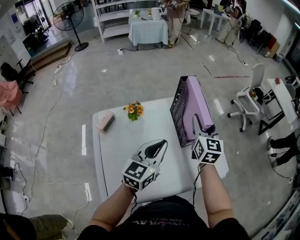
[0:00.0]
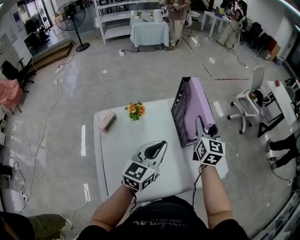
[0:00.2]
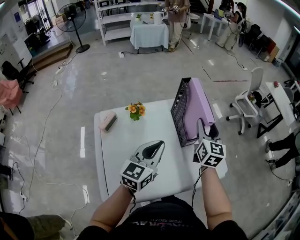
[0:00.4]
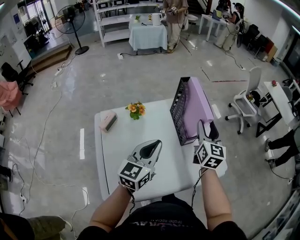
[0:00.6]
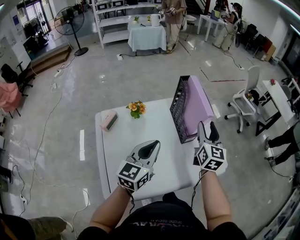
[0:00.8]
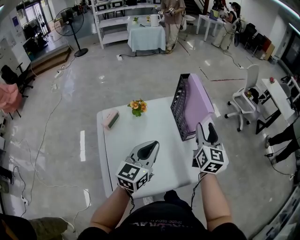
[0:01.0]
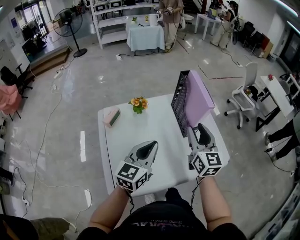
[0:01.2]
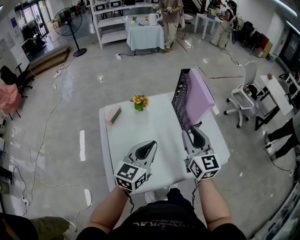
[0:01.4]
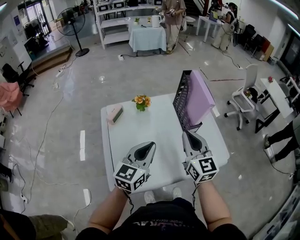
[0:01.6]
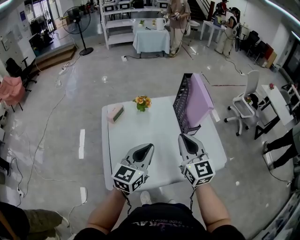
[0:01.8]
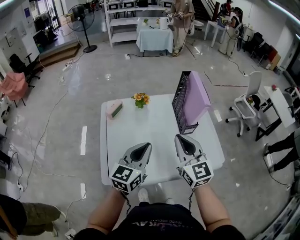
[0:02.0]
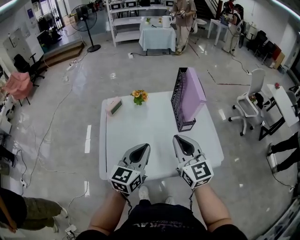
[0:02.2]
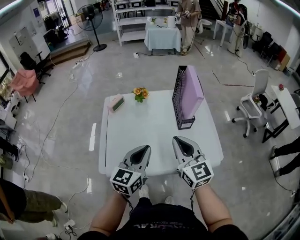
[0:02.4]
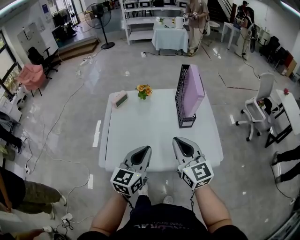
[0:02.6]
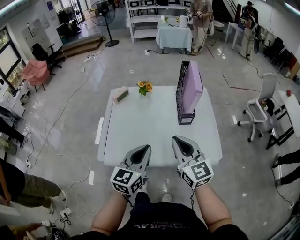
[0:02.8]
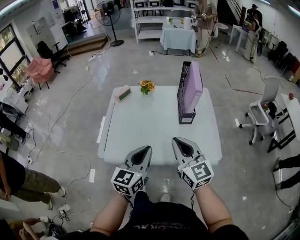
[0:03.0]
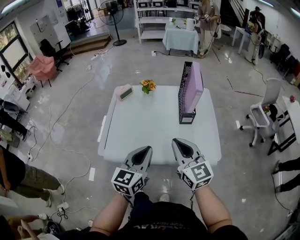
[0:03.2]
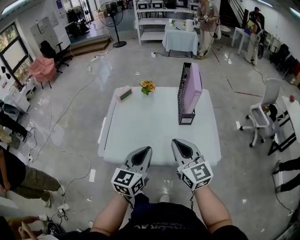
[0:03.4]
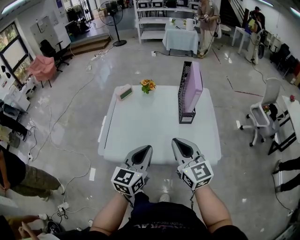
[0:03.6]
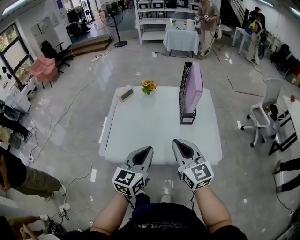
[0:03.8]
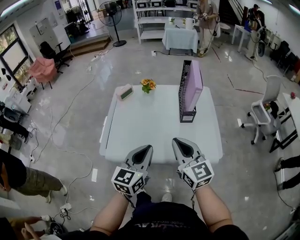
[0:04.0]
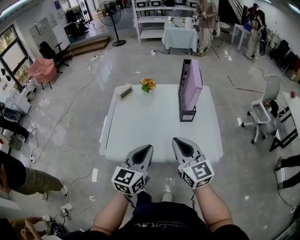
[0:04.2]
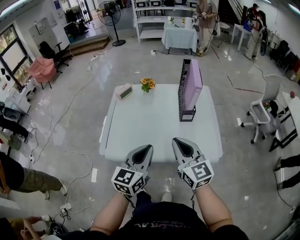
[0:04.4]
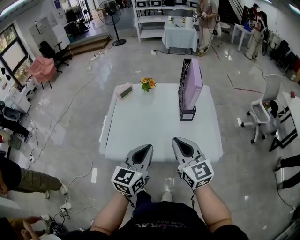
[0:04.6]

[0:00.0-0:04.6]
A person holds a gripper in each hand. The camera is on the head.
0:00.0 to 0:01.6: The right gripper shifts roughly 20 cm backward, and closes up, while the left gripper is displaced backward and to the left by approximately 15 cm.
0:01.6 to 0:03.0: Both grippers travel together backward and to the right, roughly 15 cm. The right gripper swivels some 30 degrees. Meanwhile the left gripper turns by approximately 20 degrees.
0:03.0 to 0:04.6: The grippers make only small movements.

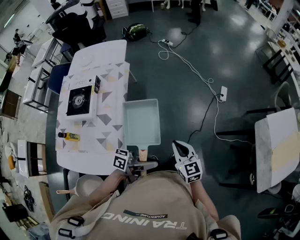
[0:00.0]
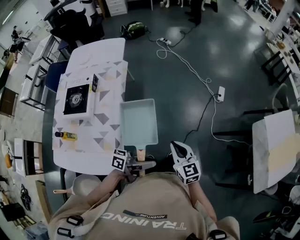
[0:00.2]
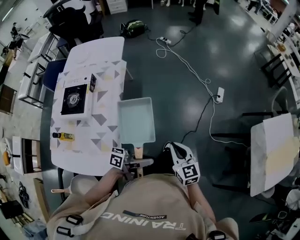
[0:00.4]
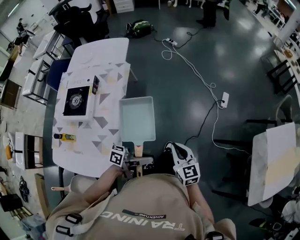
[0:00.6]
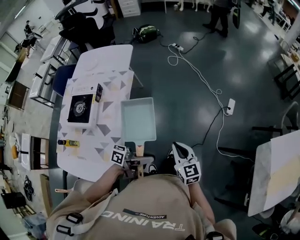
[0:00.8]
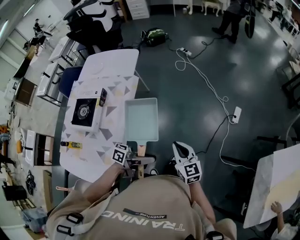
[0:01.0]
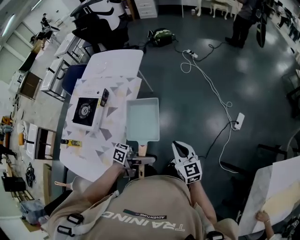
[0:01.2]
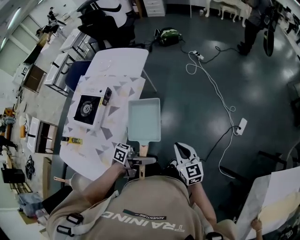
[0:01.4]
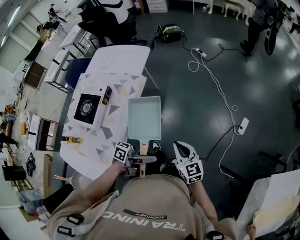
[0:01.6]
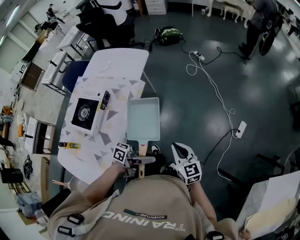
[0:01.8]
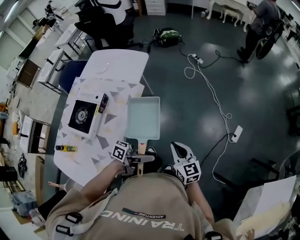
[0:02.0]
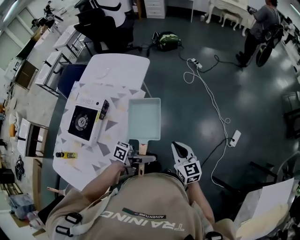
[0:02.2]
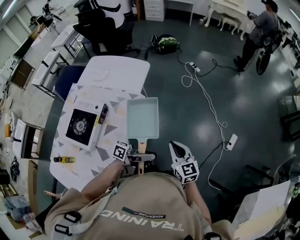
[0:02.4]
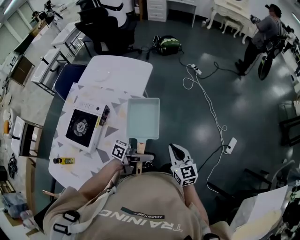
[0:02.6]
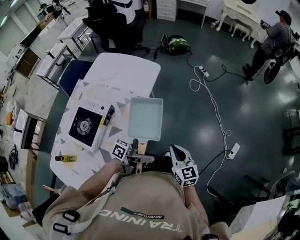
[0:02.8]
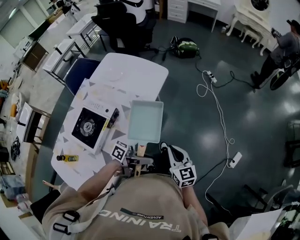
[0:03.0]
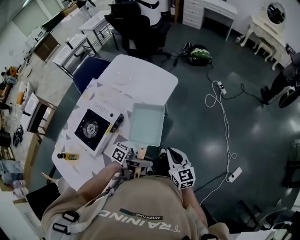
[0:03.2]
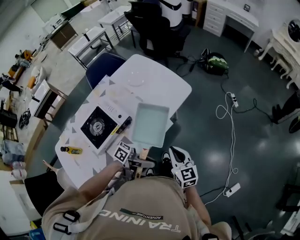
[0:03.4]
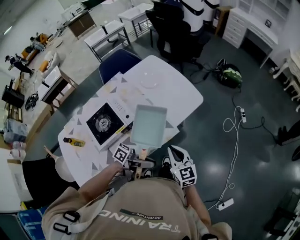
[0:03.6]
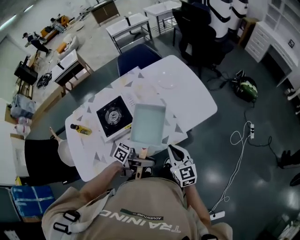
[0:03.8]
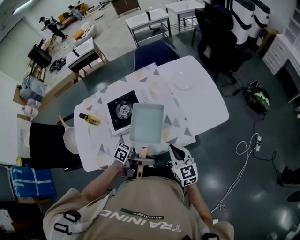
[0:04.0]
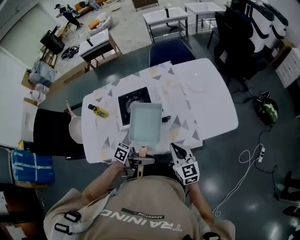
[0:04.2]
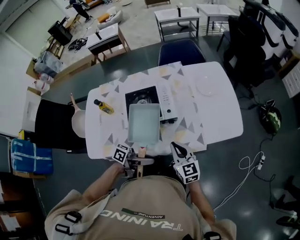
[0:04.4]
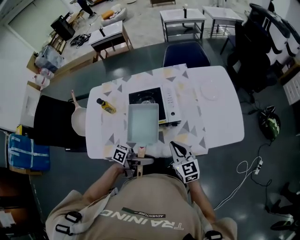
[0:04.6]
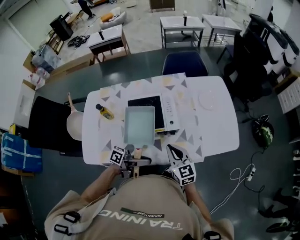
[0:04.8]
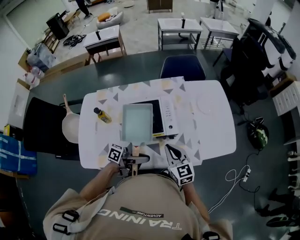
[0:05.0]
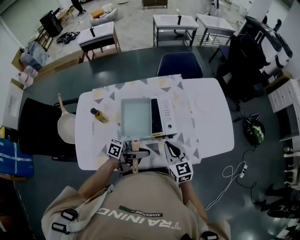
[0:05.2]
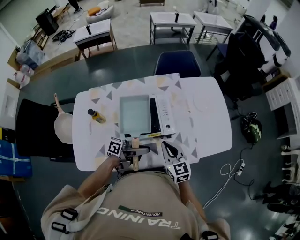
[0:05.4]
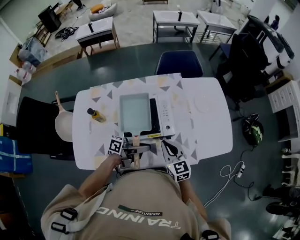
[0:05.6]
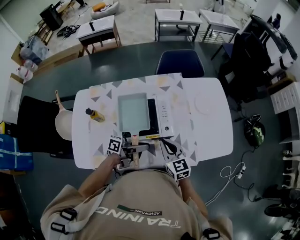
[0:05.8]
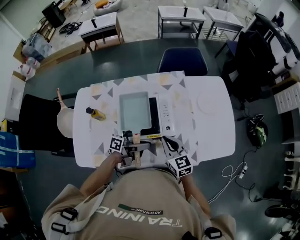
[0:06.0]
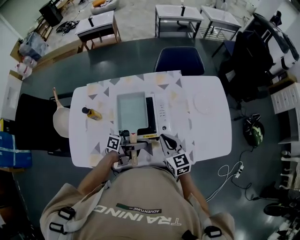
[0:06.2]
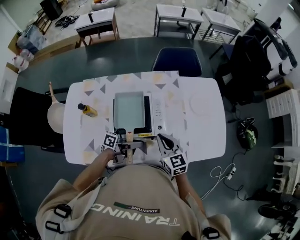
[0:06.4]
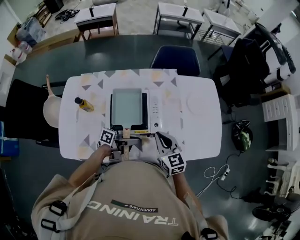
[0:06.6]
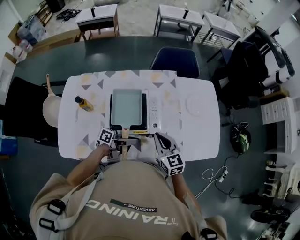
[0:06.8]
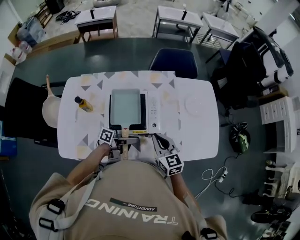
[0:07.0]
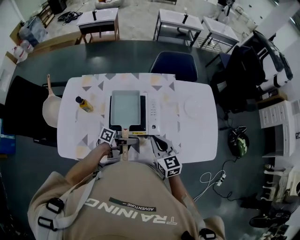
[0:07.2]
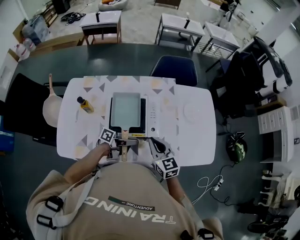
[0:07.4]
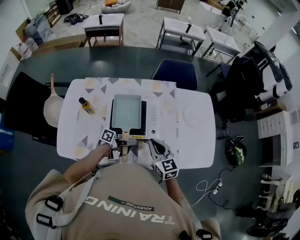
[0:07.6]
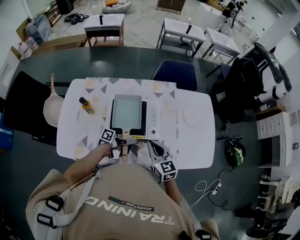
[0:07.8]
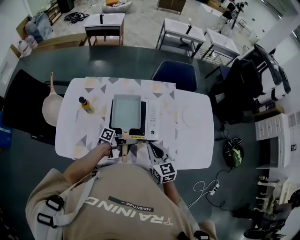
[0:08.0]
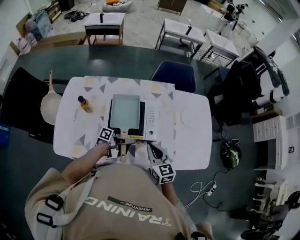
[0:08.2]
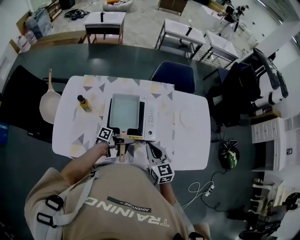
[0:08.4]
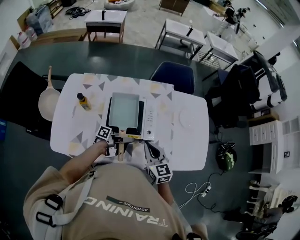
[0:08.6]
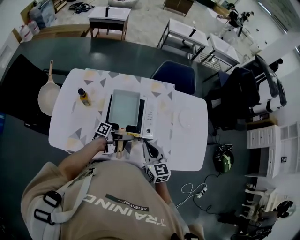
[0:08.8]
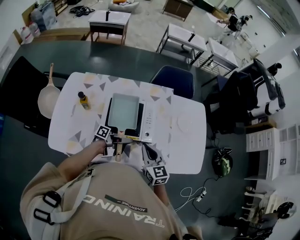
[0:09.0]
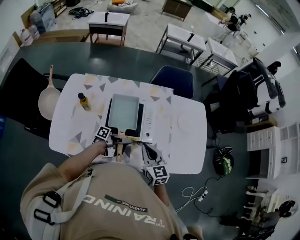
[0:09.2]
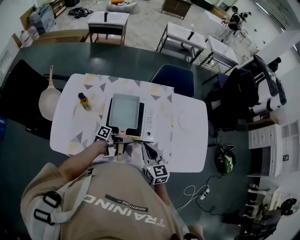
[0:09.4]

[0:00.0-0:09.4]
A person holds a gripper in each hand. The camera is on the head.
0:00.0 to 0:01.6: The right gripper ends up some 25 cm from where it was.
0:01.6 to 0:03.2: The right gripper shifts by roughly 30 cm.
0:03.2 to 0:04.8: The right gripper shifts by about 25 cm, and swivels some 60 degrees.
0:04.8 to 0:06.2: The right gripper ends up roughly 10 cm from where it was.

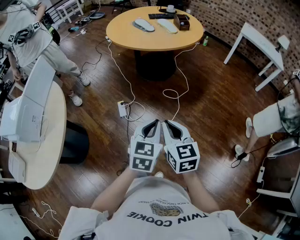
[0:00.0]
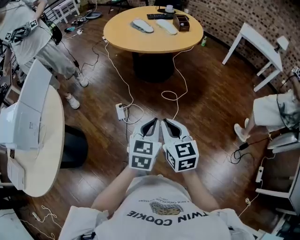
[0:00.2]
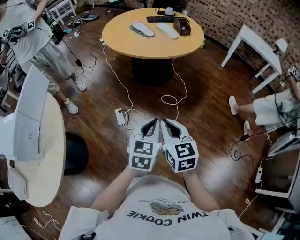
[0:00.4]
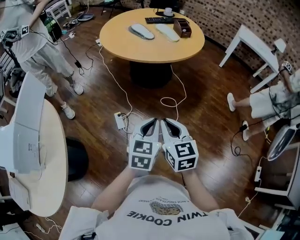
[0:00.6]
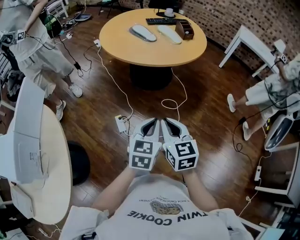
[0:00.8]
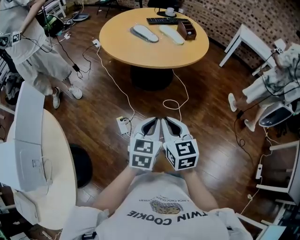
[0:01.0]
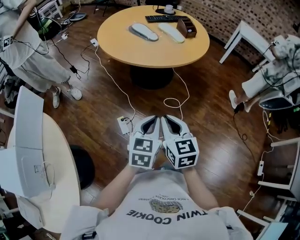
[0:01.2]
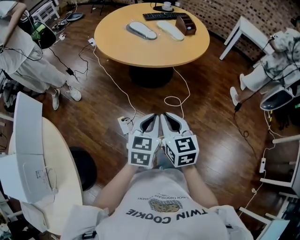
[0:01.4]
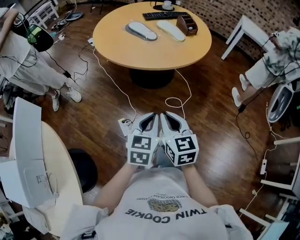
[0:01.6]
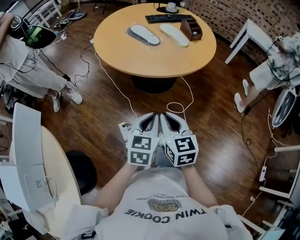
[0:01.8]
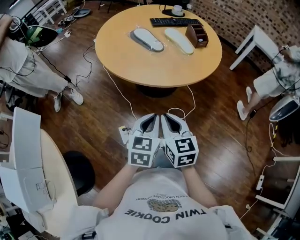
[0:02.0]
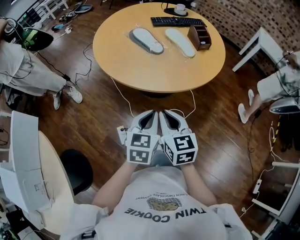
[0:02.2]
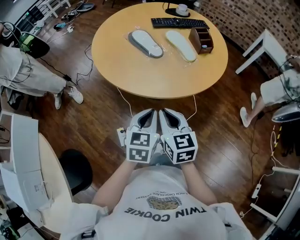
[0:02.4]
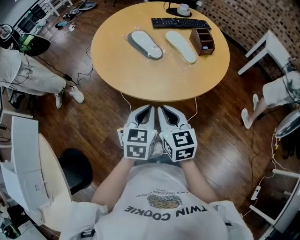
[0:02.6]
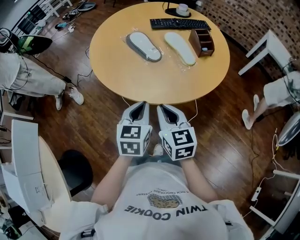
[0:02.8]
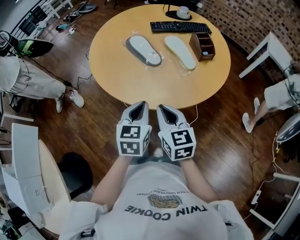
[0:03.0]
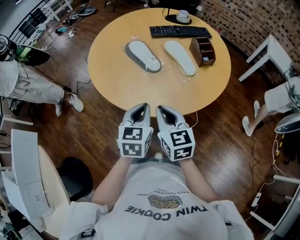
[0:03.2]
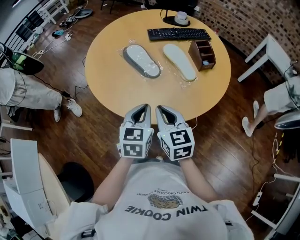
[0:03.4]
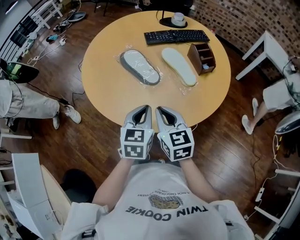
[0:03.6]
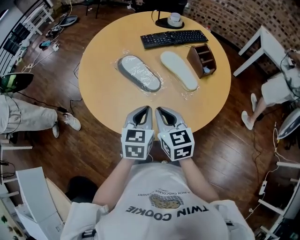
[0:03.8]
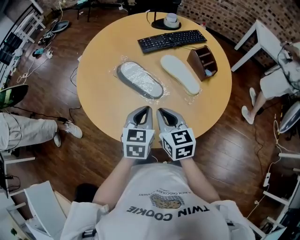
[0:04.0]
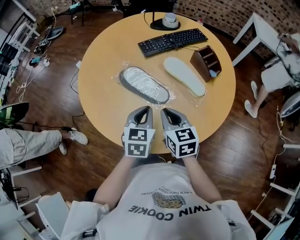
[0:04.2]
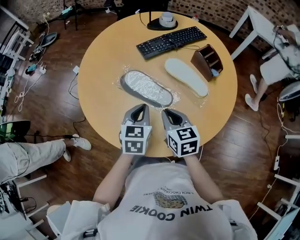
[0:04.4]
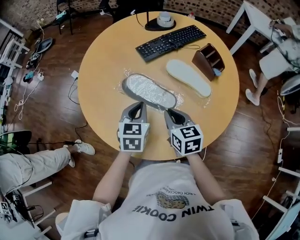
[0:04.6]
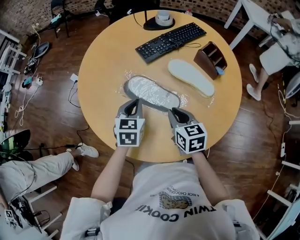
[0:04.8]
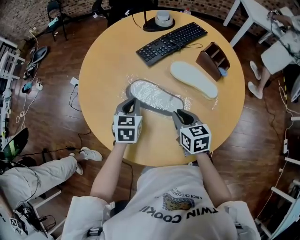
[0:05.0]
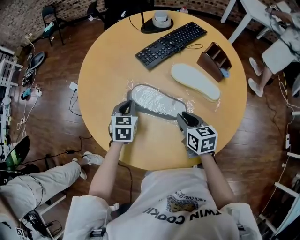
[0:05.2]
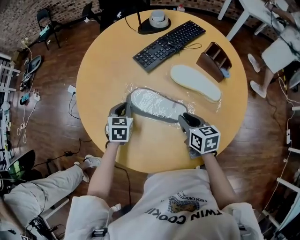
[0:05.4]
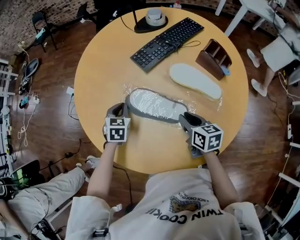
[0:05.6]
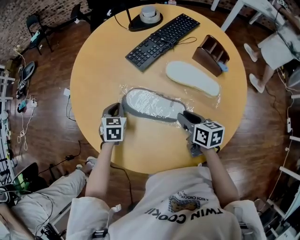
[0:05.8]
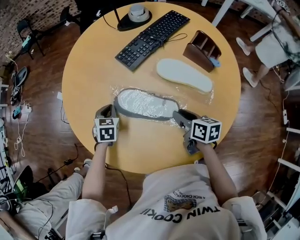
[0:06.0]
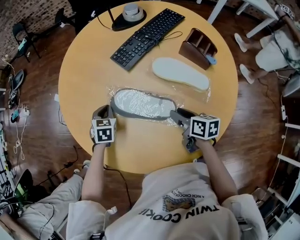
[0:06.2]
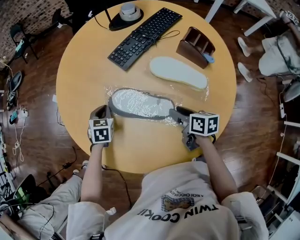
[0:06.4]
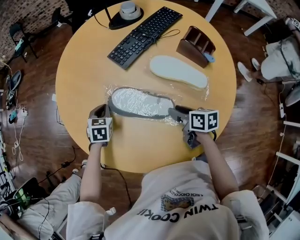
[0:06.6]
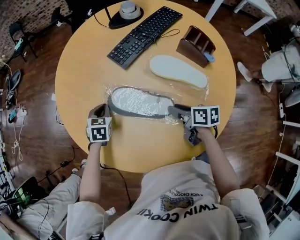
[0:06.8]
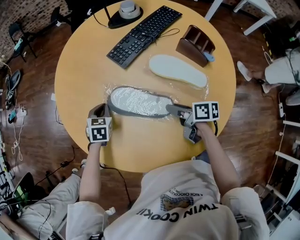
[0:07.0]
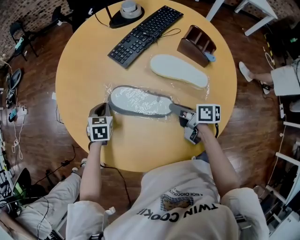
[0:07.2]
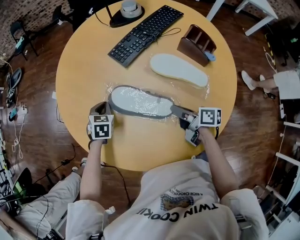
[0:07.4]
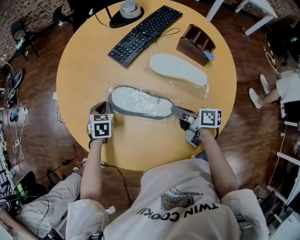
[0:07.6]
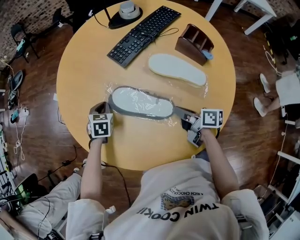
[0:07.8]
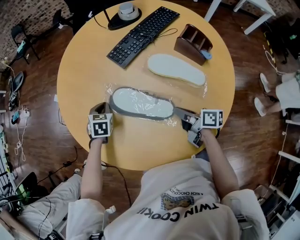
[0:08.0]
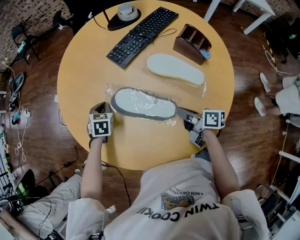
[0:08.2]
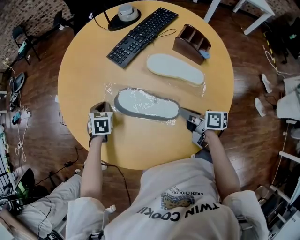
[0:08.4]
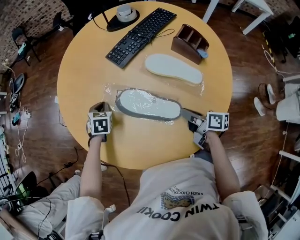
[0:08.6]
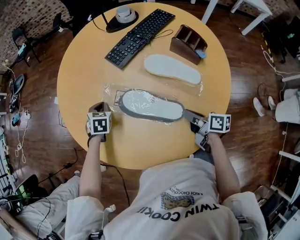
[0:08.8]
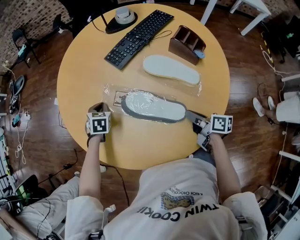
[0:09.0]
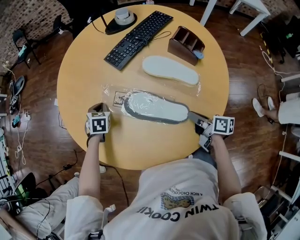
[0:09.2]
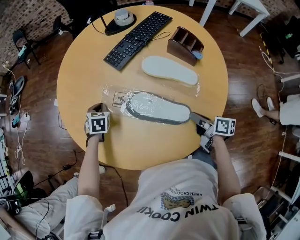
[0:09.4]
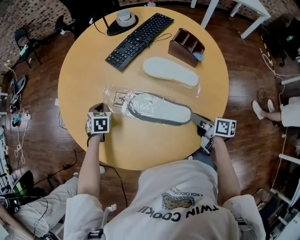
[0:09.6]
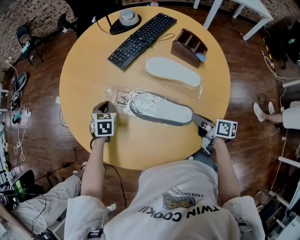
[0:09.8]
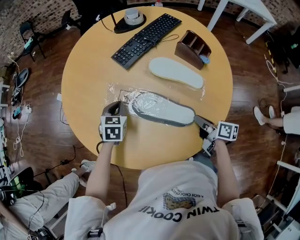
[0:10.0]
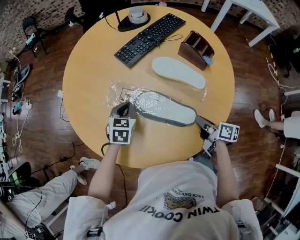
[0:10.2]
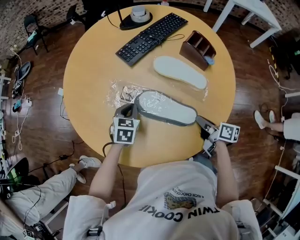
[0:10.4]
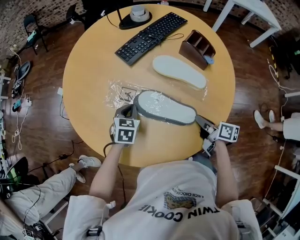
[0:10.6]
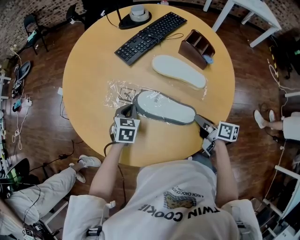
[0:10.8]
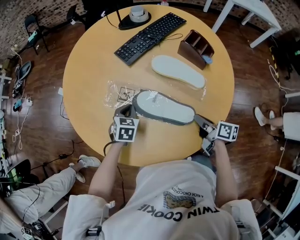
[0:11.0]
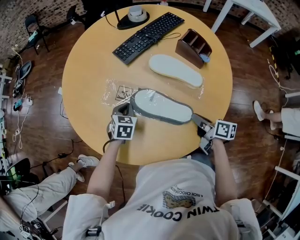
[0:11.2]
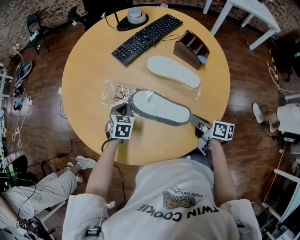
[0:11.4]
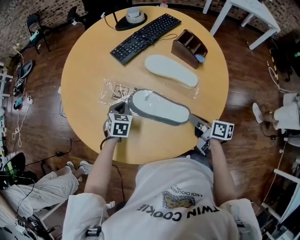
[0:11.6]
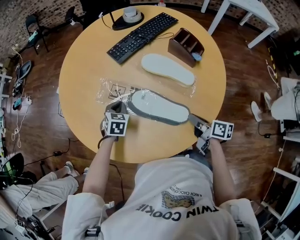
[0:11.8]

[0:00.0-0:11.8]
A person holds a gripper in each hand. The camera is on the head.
0:00.0 to 0:01.4: The two grippers go roughly 30 cm forward and to the left.
0:01.4 to 0:03.0: The two grippers go approximately 35 cm forward.
0:03.0 to 0:04.4: Both grippers move forward, some 25 cm. The left gripper rotates about 20 degrees. The right gripper turns by roughly 20 degrees.
0:04.4 to 0:06.0: The right gripper moves downward and forward, about 10 cm, rotates approximately 40 degrees, and opens up. Meanwhile the left gripper shifts about 30 cm forward, to the left and downward, and changes its angle by about 30 degrees.
0:06.0 to 0:07.4: The right gripper swivels roughly 30 degrees.
0:07.4 to 0:08.8: The right gripper is displaced backward by some 5 cm.
0:08.8 to 0:10.4: The left gripper shifts roughly 15 cm to the right and backward.
0:10.4 to 0:11.8: The grippers make only small movements.
